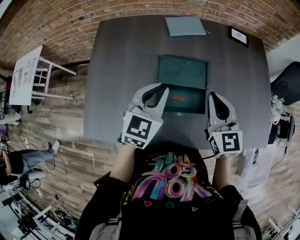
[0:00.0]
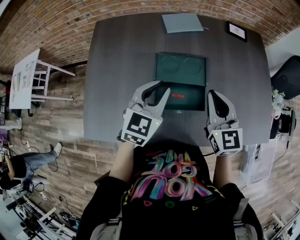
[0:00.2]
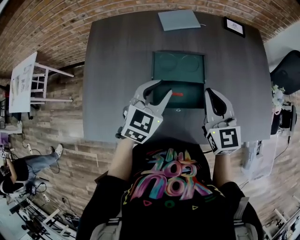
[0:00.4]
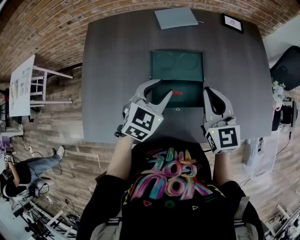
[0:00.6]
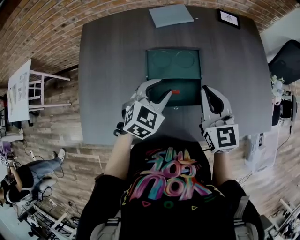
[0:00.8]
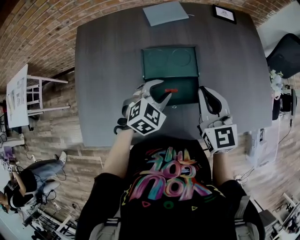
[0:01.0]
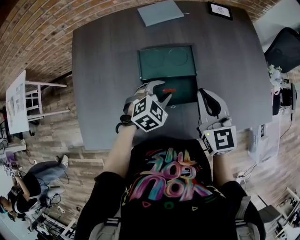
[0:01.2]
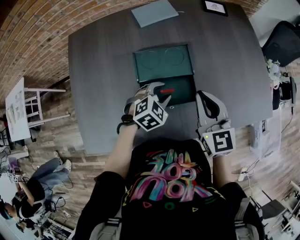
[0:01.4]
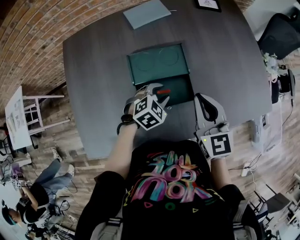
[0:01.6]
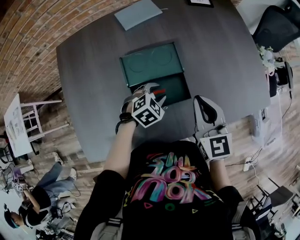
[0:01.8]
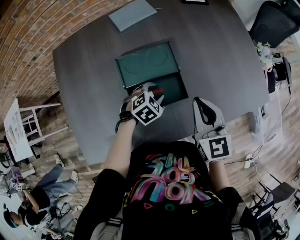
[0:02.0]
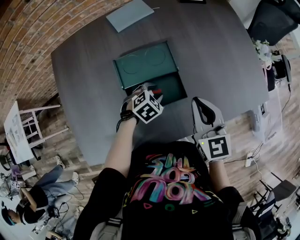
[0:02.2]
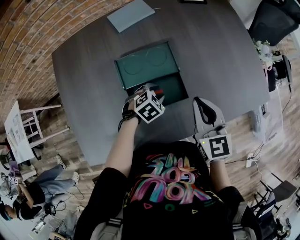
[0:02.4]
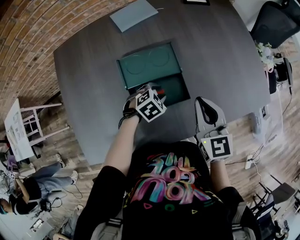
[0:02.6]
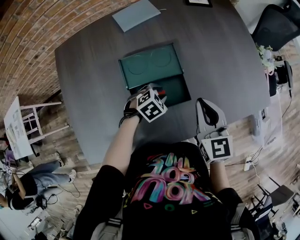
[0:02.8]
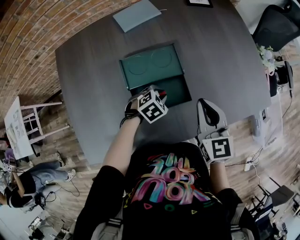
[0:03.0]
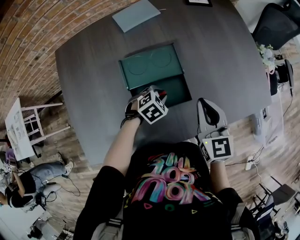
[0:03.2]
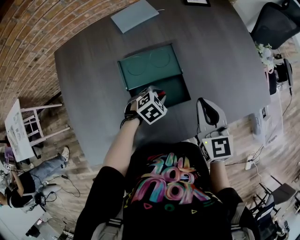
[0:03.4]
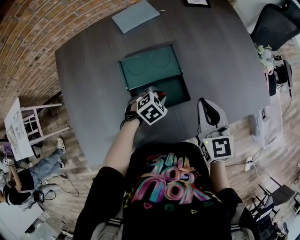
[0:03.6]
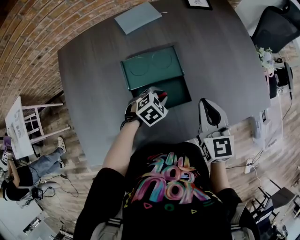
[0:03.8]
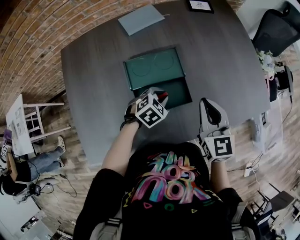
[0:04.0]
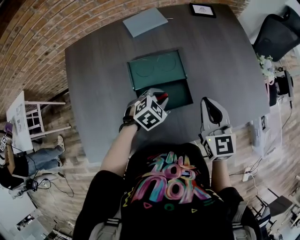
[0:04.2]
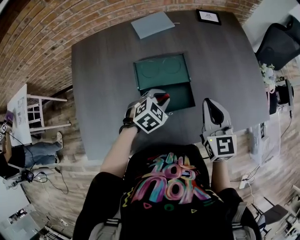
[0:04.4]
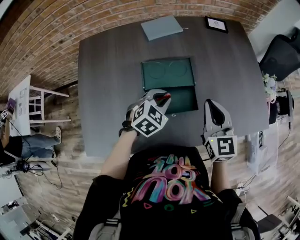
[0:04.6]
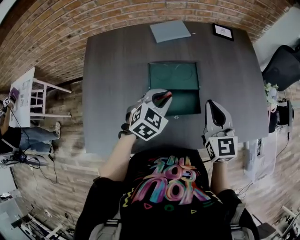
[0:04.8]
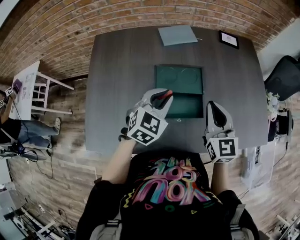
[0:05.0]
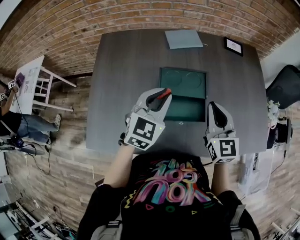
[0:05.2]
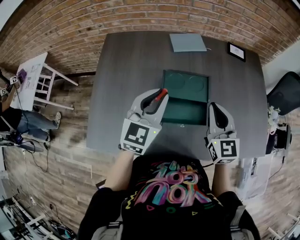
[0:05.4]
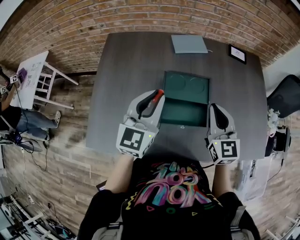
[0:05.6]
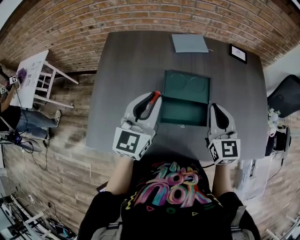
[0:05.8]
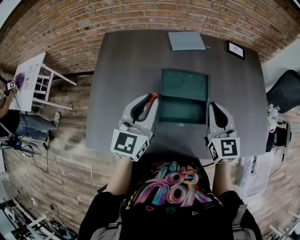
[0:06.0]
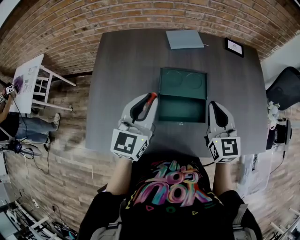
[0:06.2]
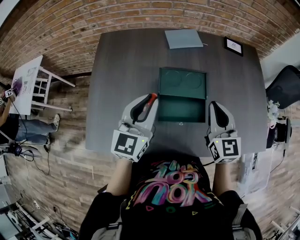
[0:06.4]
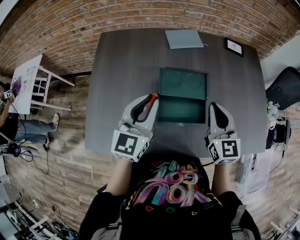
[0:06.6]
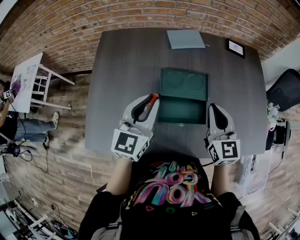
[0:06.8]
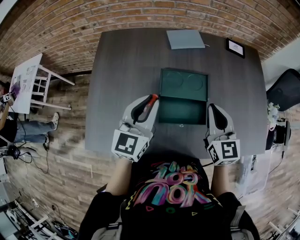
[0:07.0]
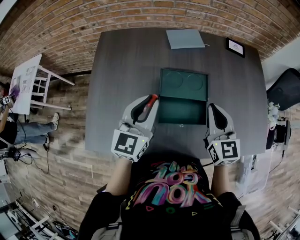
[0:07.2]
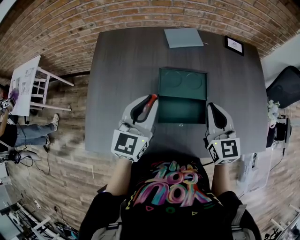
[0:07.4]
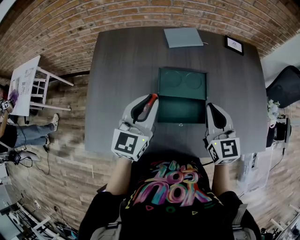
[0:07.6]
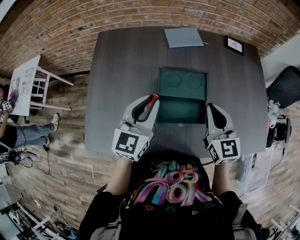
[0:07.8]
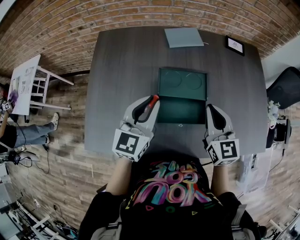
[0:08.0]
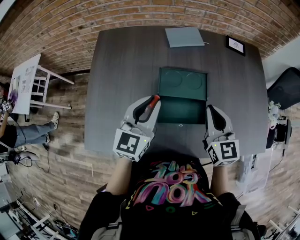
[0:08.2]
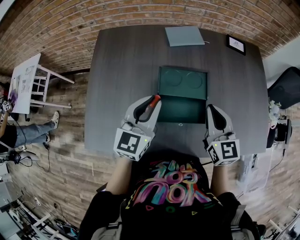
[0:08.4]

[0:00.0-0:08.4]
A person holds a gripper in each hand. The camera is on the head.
0:00.0 to 0:01.4: The right gripper changes place by some 5 cm. Meanwhile the left gripper moves downward and to the right, roughly 20 cm, tilts its fingers approximately 30 degrees downward, and opens.
0:01.4 to 0:02.8: The left gripper travels downward by about 5 cm; the right gripper ends up about 5 cm from where it was.
0:02.8 to 0:04.2: The left gripper shifts about 5 cm upward.
0:04.2 to 0:05.6: The left gripper goes approximately 25 cm upward, and tilts its fingers about 50 degrees upward; the right gripper shifts by about 10 cm.
0:05.6 to 0:08.4: The grippers make only small movements.

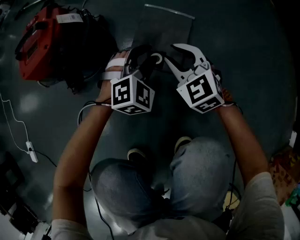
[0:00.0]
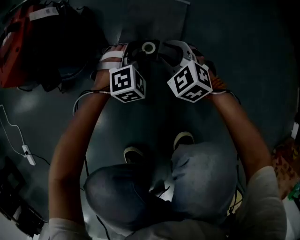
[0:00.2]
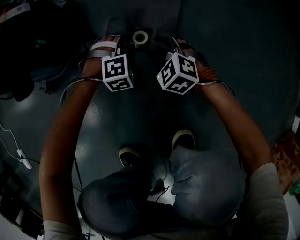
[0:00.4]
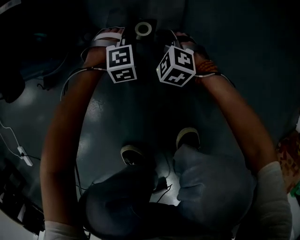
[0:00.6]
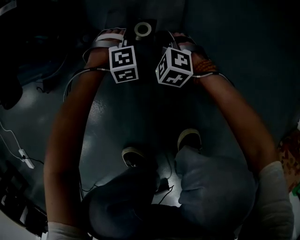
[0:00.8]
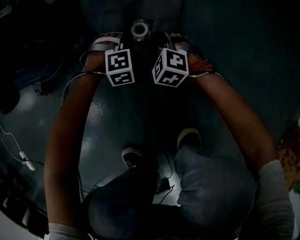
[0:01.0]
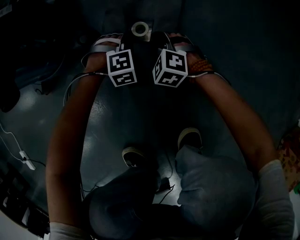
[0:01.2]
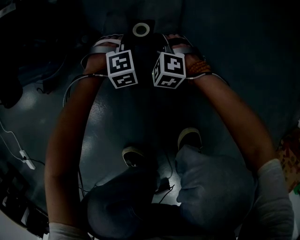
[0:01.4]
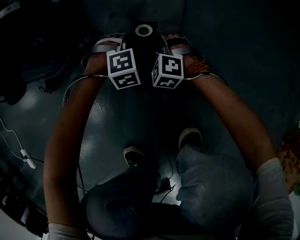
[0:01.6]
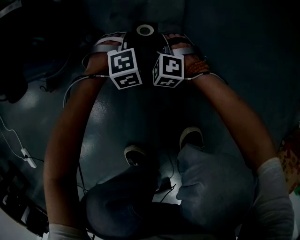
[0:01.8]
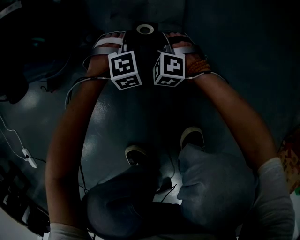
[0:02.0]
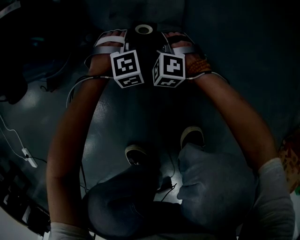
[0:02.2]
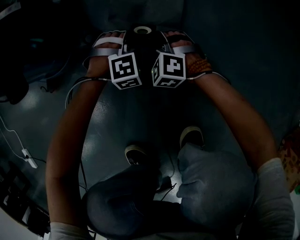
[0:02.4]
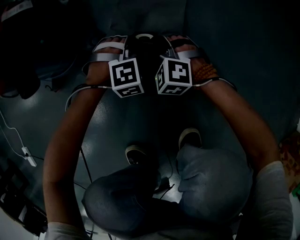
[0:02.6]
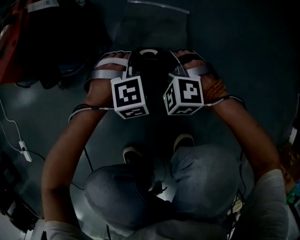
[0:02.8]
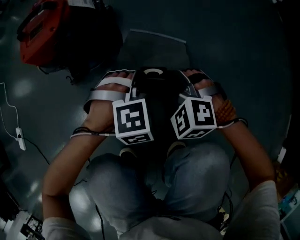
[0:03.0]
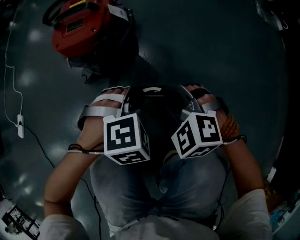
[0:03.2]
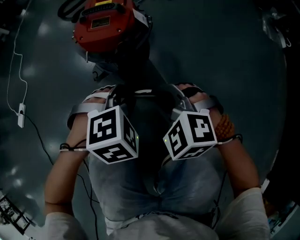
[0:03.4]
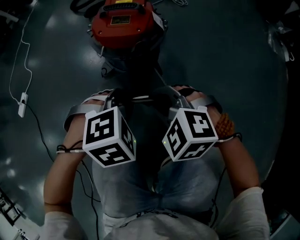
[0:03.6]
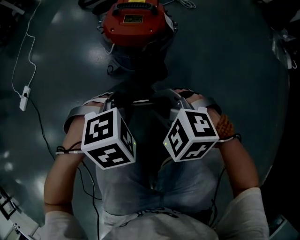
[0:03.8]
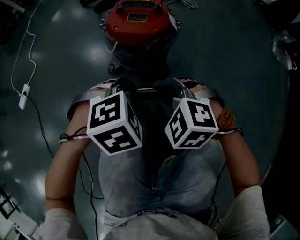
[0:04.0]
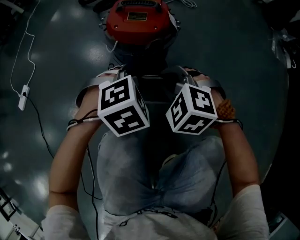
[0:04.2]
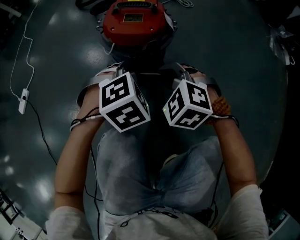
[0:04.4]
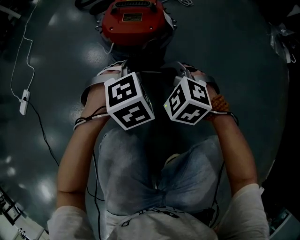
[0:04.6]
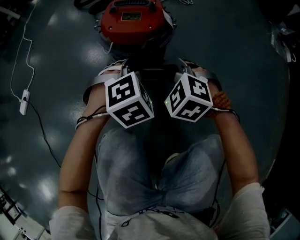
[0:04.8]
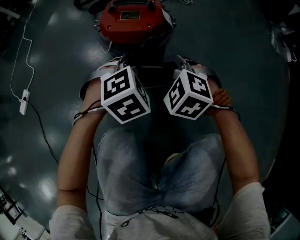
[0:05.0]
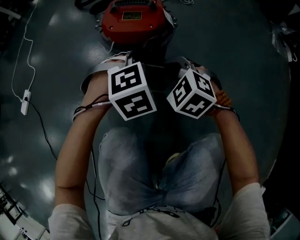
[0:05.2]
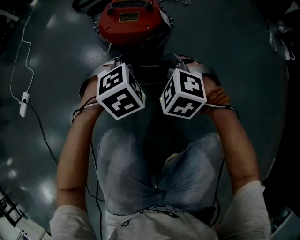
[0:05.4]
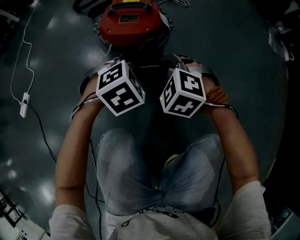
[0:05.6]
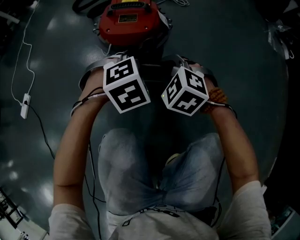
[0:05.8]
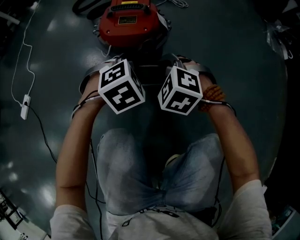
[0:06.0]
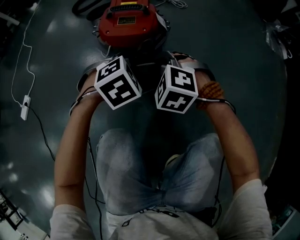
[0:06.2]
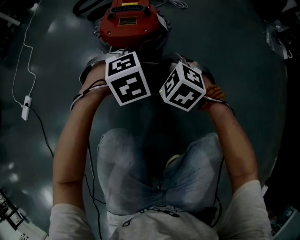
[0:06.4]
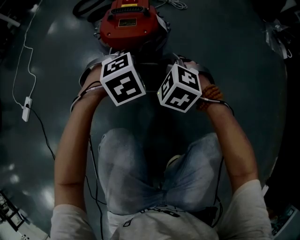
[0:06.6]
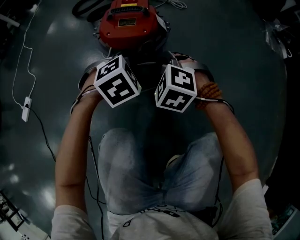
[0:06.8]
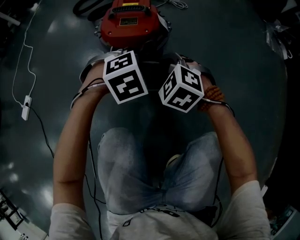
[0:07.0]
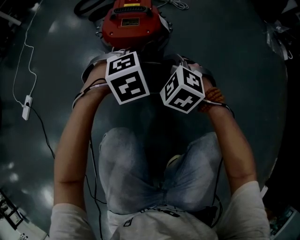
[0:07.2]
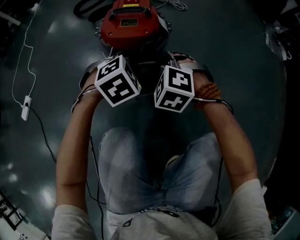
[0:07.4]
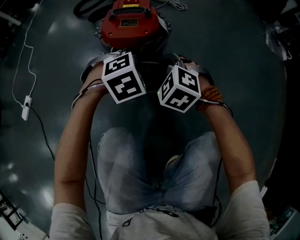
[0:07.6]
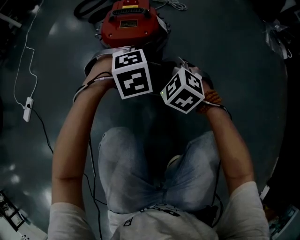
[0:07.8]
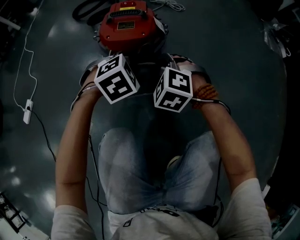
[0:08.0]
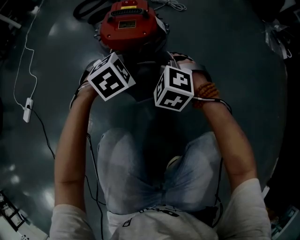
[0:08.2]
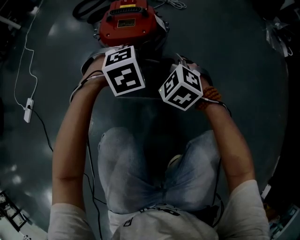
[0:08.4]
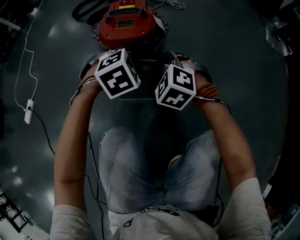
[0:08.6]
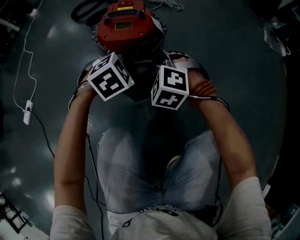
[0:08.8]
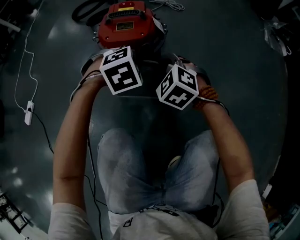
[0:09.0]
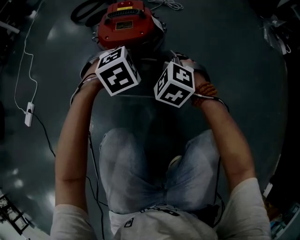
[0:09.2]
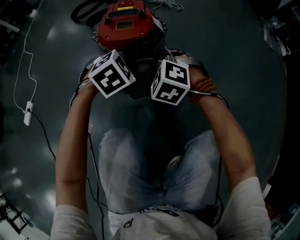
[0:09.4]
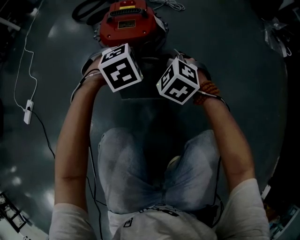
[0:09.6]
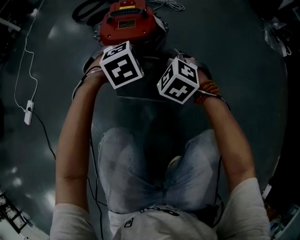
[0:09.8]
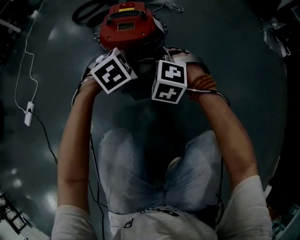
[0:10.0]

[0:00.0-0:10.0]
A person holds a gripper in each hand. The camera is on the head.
0:00.0 to 0:01.4: The two grippers go about 30 cm downward. The left gripper turns by about 30 degrees, and closes up. The right gripper changes its angle by approximately 30 degrees.
0:01.4 to 0:02.8: Both grippers move upward, some 15 cm. The left gripper opens, then closes once more. Meanwhile the right gripper closes.
0:02.8 to 0:04.2: Both grippers move upward and to the left, roughly 30 cm. The right gripper rotates roughly 20 degrees. The left gripper rotates around the line of its fingers by some 40 degrees, counterclockwise from behind.
0:04.2 to 0:07.2: The grippers stay close to where they were, moving slightly.
0:07.2 to 0:10.0: The grippers stay close to where they were, moving slightly.

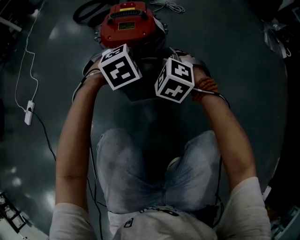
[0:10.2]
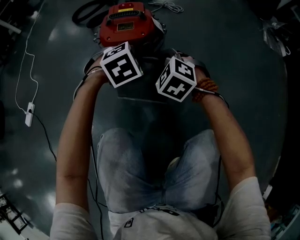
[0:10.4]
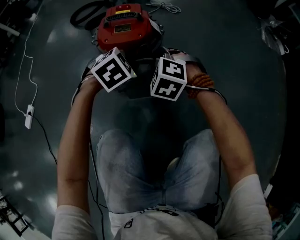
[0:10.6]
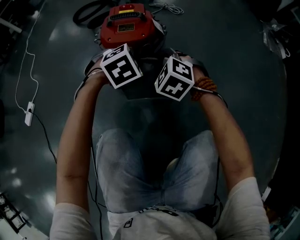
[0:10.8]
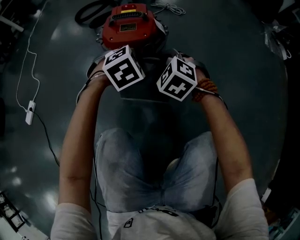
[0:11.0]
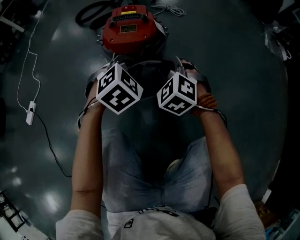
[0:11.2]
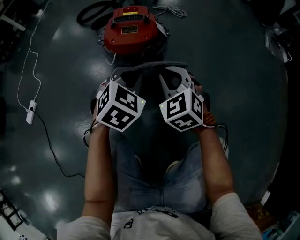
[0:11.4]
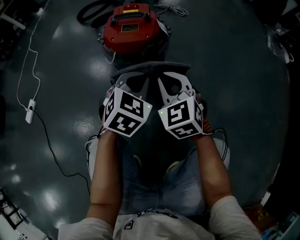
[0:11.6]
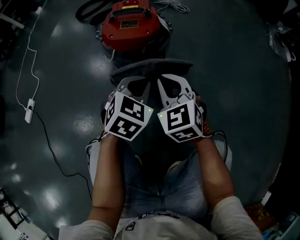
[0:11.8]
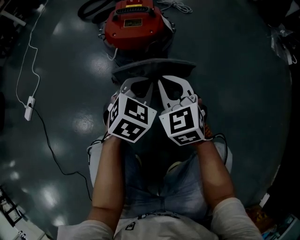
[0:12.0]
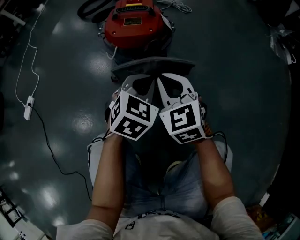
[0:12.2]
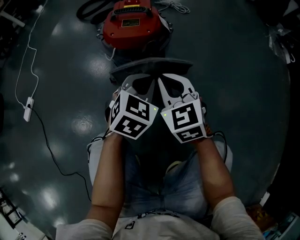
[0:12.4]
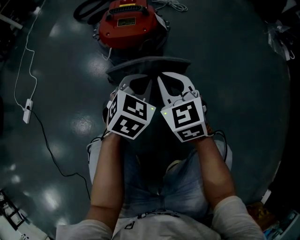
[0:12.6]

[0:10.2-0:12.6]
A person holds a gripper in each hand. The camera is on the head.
0:10.2 to 0:11.4: The left gripper ends up some 5 cm from where it was, and rotates some 30 degrees; the right gripper ends up approximately 5 cm from where it was, and swivels some 30 degrees.
0:11.4 to 0:12.6: The left gripper moves approximately 5 cm.

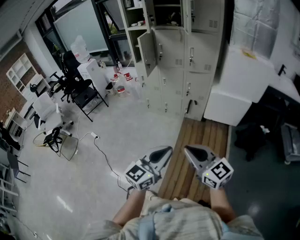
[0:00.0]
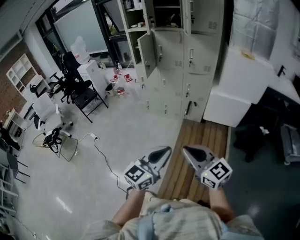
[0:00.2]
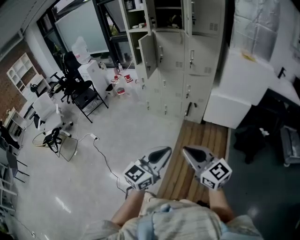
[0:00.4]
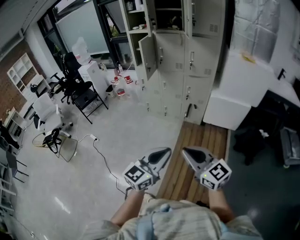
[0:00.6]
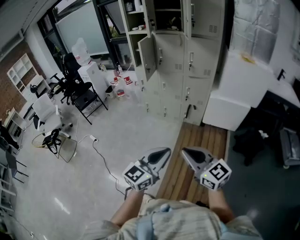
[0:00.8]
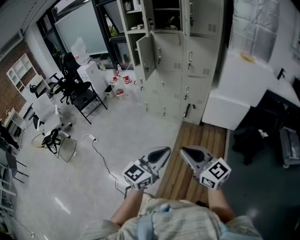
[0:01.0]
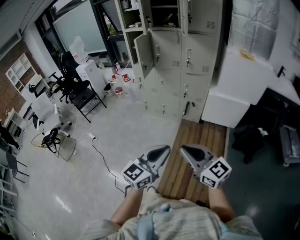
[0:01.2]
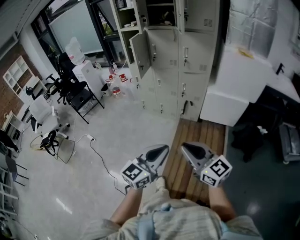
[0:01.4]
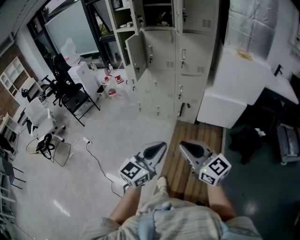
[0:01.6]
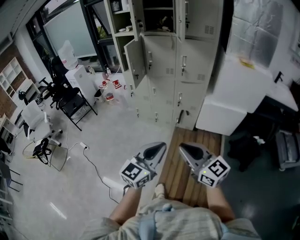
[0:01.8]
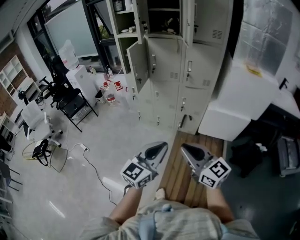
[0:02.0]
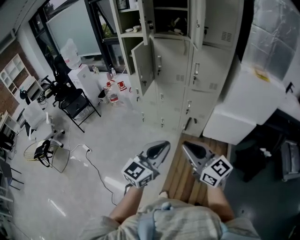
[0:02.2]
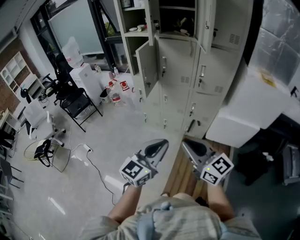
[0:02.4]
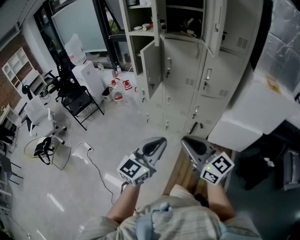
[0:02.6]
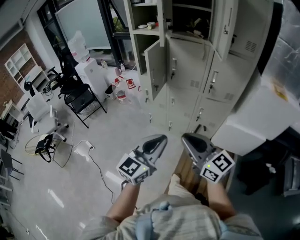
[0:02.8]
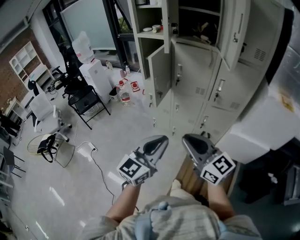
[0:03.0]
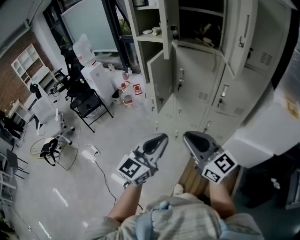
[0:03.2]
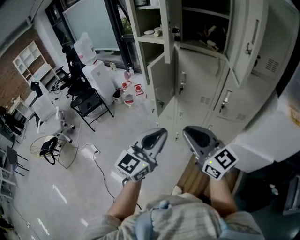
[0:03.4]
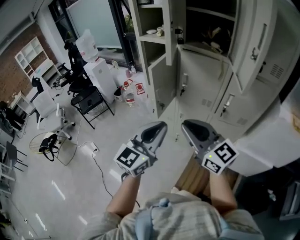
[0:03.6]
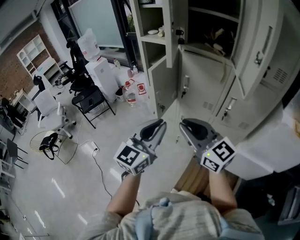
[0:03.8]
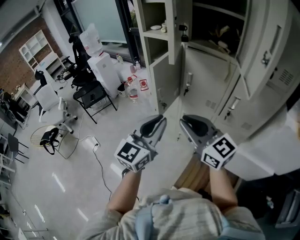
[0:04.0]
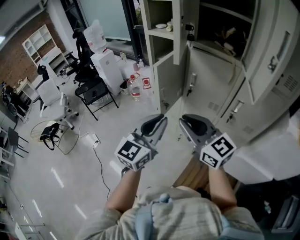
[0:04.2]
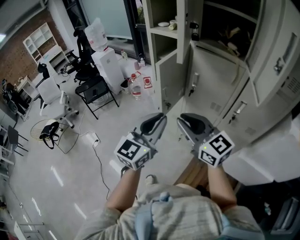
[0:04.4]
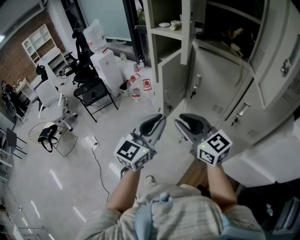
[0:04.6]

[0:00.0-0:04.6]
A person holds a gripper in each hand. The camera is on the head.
0:00.0 to 0:01.6: The grippers both shift forward by roughly 10 cm.
0:01.6 to 0:03.0: The grippers both shift forward by about 35 cm.
0:03.0 to 0:04.6: The grippers both shift forward by some 25 cm.
